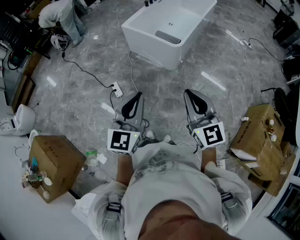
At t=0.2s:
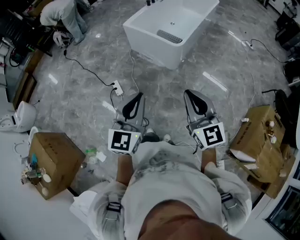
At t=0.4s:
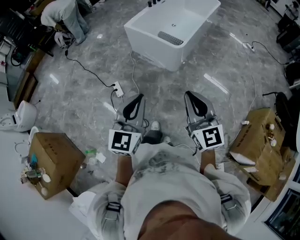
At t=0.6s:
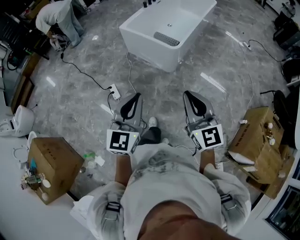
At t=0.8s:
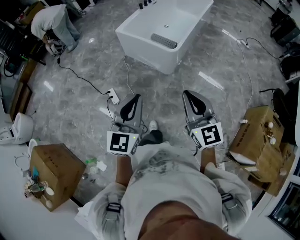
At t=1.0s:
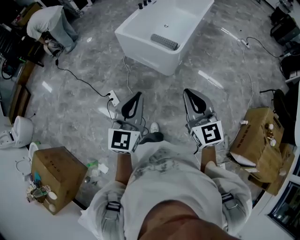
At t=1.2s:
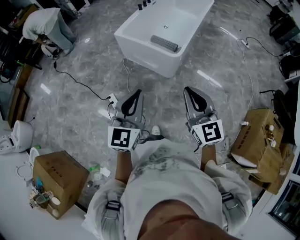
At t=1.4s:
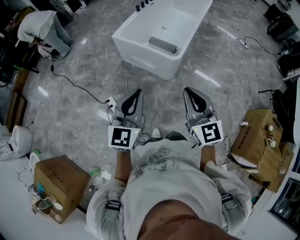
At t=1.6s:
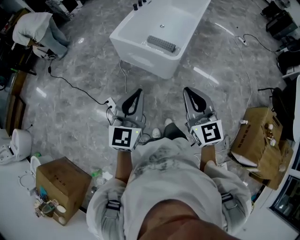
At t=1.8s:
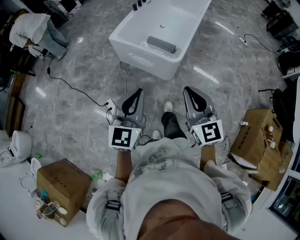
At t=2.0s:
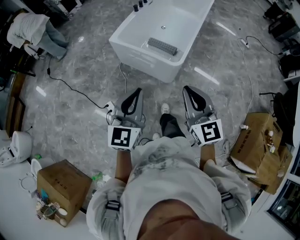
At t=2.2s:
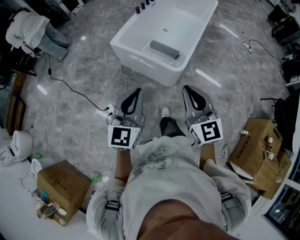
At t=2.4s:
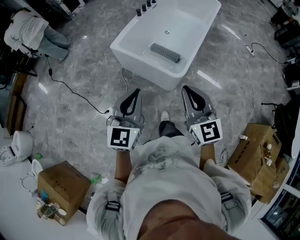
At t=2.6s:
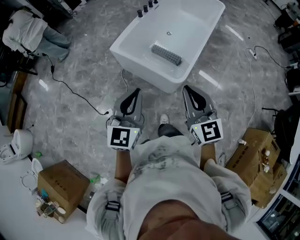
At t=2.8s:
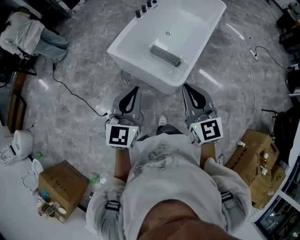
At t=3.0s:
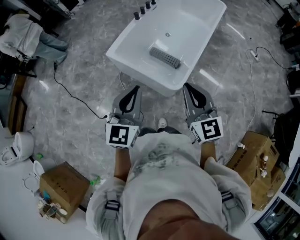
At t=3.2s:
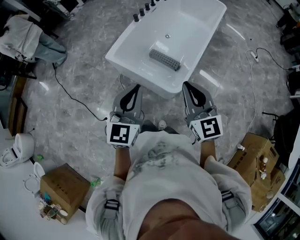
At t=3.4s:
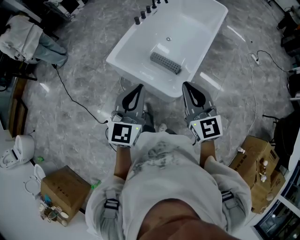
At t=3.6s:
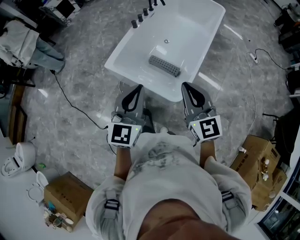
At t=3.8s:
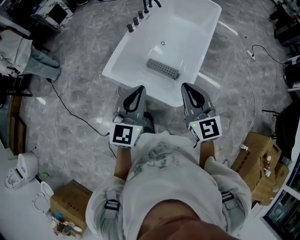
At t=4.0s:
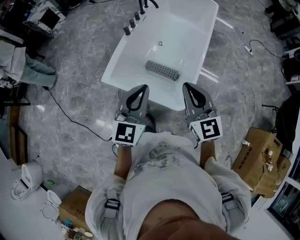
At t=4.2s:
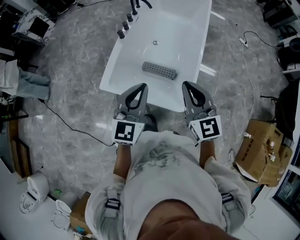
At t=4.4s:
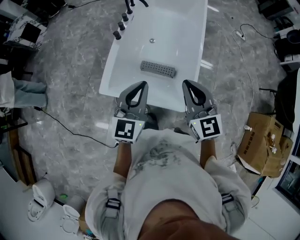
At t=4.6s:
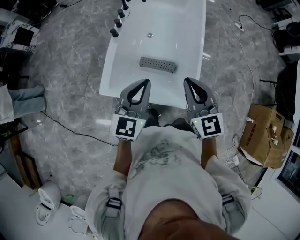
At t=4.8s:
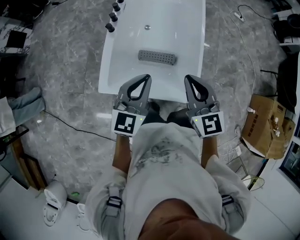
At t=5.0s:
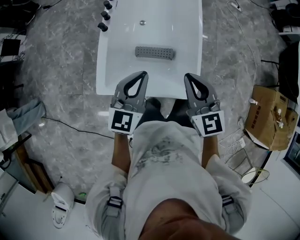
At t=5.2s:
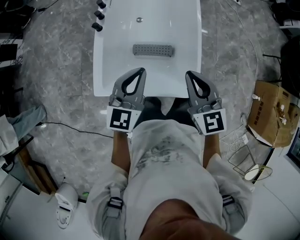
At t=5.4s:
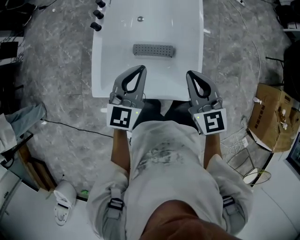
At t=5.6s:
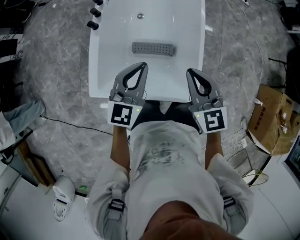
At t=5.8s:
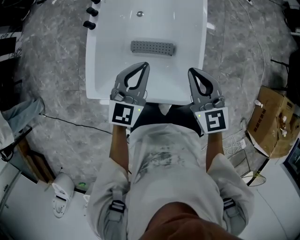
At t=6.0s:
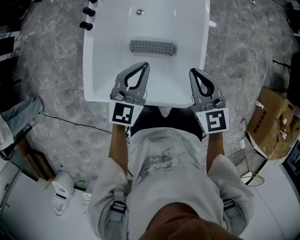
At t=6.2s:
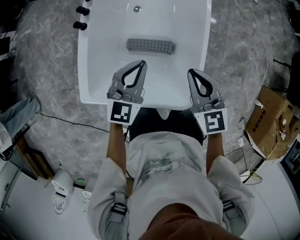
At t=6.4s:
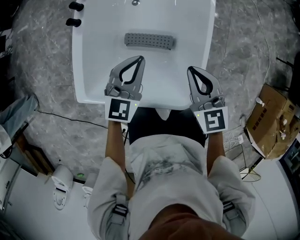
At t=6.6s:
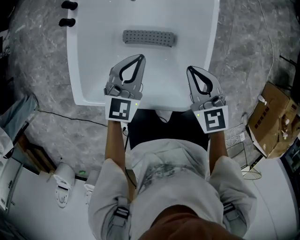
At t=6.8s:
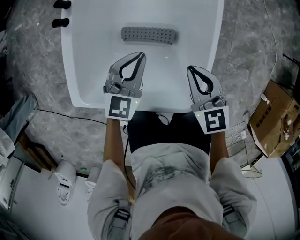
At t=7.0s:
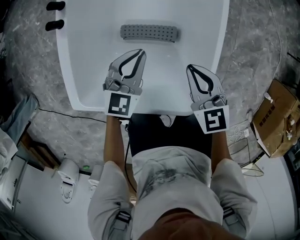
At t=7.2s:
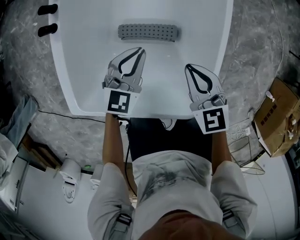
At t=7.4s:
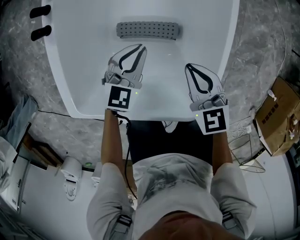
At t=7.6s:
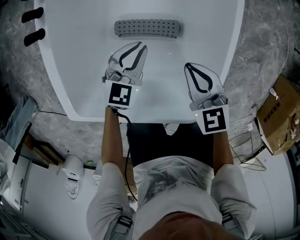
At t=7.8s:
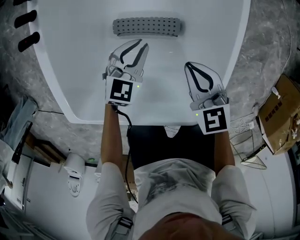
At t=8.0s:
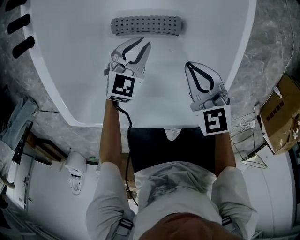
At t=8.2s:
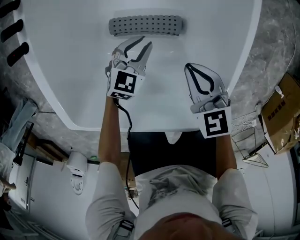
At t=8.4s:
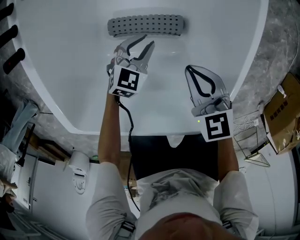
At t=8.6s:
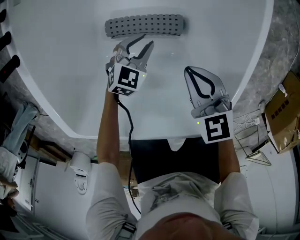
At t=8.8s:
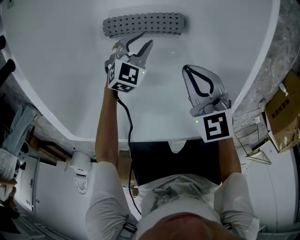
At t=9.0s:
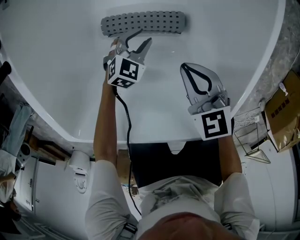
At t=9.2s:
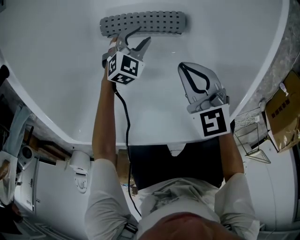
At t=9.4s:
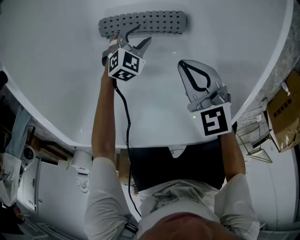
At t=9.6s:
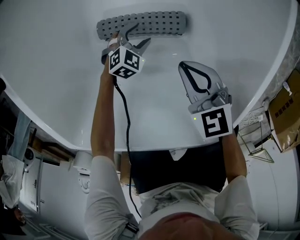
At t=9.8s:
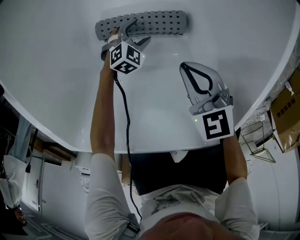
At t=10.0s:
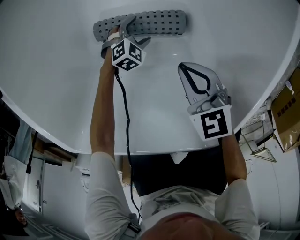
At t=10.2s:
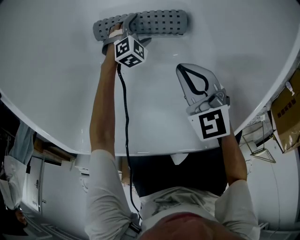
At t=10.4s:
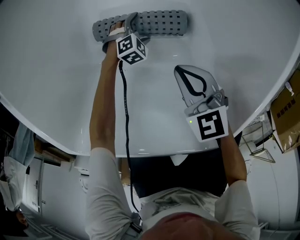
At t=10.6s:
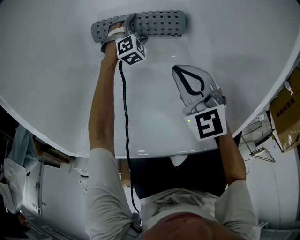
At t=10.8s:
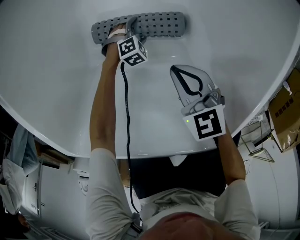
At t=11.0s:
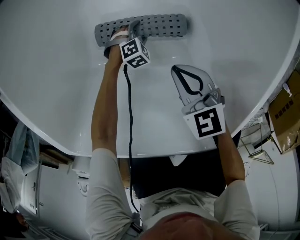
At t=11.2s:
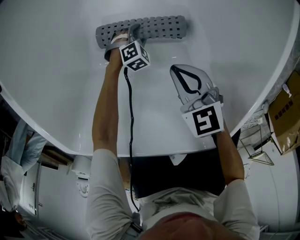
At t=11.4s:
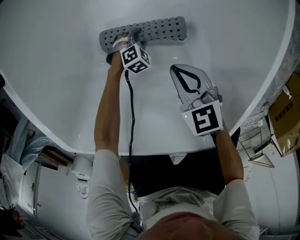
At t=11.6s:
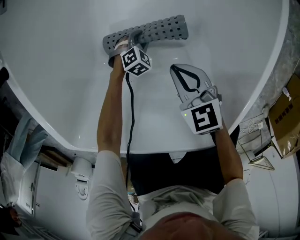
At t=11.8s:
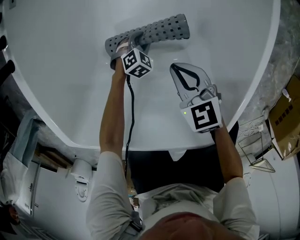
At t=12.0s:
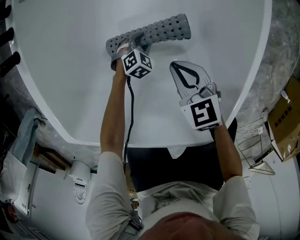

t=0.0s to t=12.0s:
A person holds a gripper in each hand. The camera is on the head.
t=0.0s to t=1.6s: The two grippers go about 25 cm forward.
t=1.6s to t=3.0s: Both grippers move forward, some 35 cm.
t=3.0s to t=4.4s: The grippers both shift forward by roughly 30 cm. The left gripper turns by about 20 degrees.
t=4.4s to t=6.0s: Both grippers travel together downward and forward, some 25 cm.
t=6.0s to t=7.6s: Both grippers move downward, some 35 cm. The right gripper changes its angle by roughly 20 degrees.
t=7.6s to t=9.0s: The right gripper is displaced downward by some 10 cm; the left gripper travels downward by approximately 25 cm, and rotates some 20 degrees.
t=9.0s to t=10.4s: The left gripper moves downward, roughly 20 cm, rotates about 30 degrees, and opens its fingers, while the right gripper heads downward, covering about 10 cm.
t=10.4s to t=12.0s: The right gripper heads upward, covering about 5 cm. The left gripper moves upward, some 10 cm, and closes its fingers.

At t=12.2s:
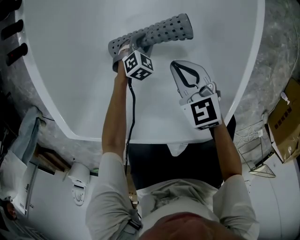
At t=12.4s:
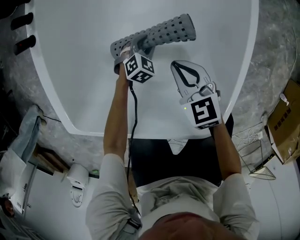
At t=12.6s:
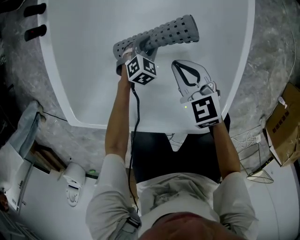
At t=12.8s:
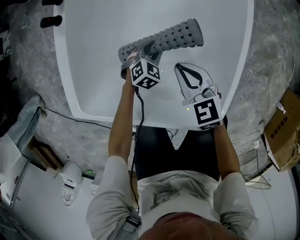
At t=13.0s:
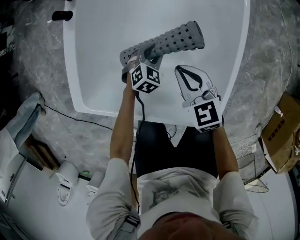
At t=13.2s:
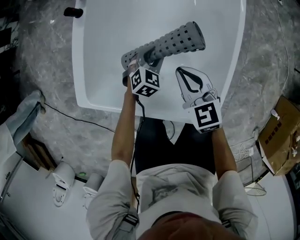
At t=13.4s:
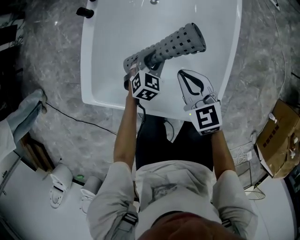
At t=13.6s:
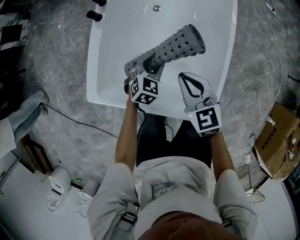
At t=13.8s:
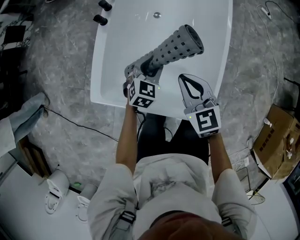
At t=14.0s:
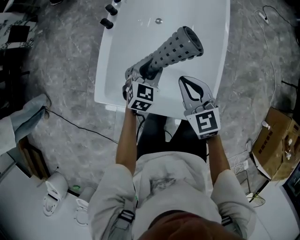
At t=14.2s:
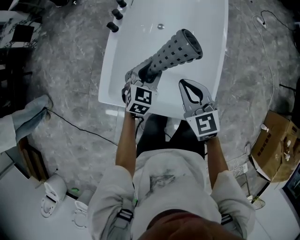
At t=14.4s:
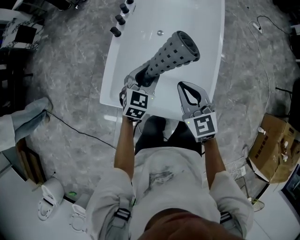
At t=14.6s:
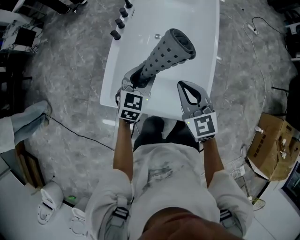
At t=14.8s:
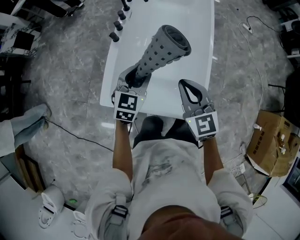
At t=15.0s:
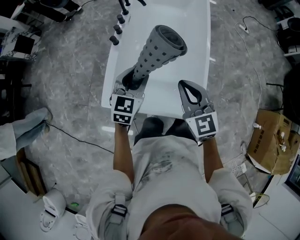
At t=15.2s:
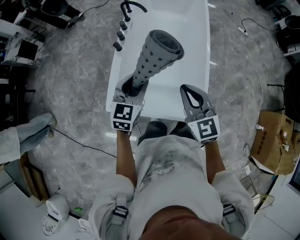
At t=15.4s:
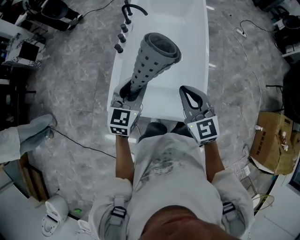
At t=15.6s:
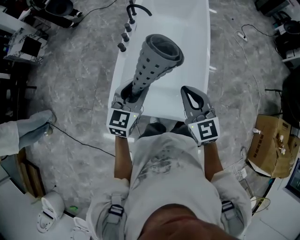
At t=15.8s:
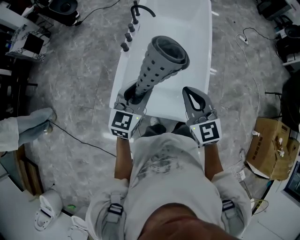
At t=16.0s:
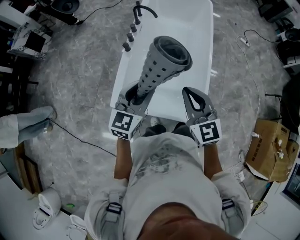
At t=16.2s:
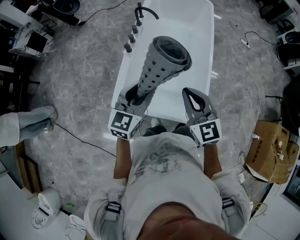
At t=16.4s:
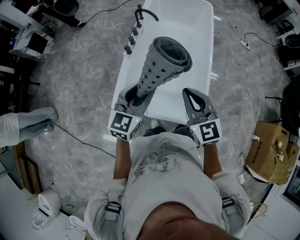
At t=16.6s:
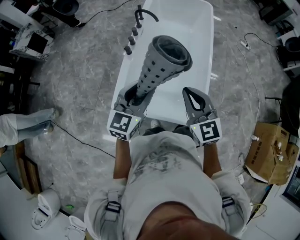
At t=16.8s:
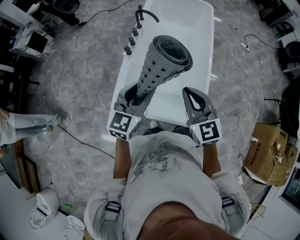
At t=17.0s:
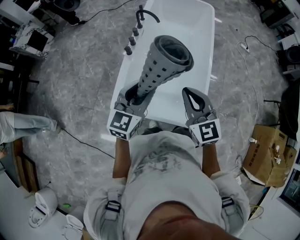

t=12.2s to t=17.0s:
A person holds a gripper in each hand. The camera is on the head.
t=12.2s to t=13.8s: Both grippers move upward, some 35 cm. The left gripper swivels some 30 degrees.
t=13.8s to t=15.4s: The grippers both shift upward by approximately 30 cm. The left gripper turns by roughly 20 degrees.
t=15.4s to t=17.0s: The two grippers go approximately 5 cm upward.

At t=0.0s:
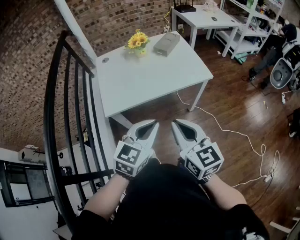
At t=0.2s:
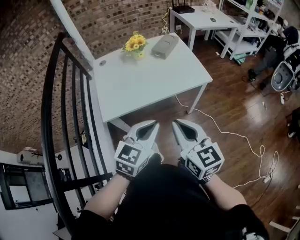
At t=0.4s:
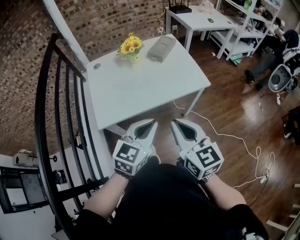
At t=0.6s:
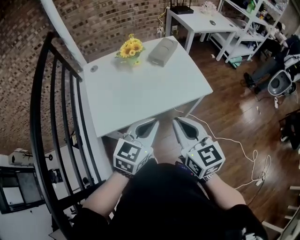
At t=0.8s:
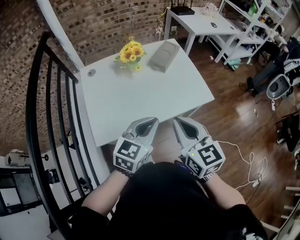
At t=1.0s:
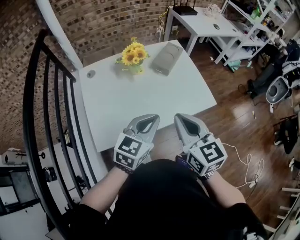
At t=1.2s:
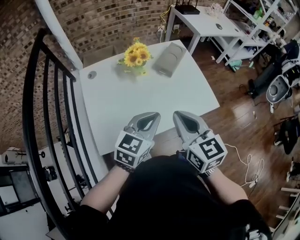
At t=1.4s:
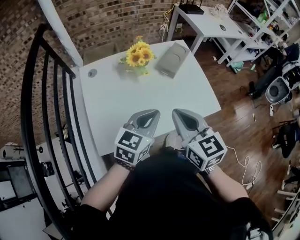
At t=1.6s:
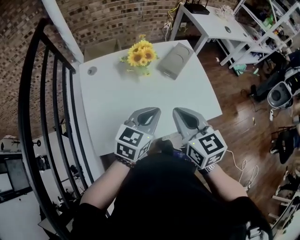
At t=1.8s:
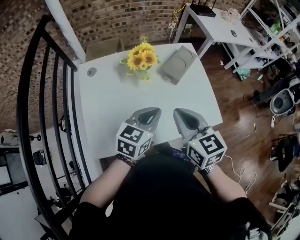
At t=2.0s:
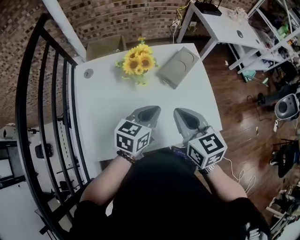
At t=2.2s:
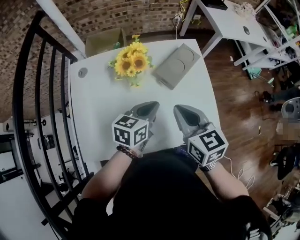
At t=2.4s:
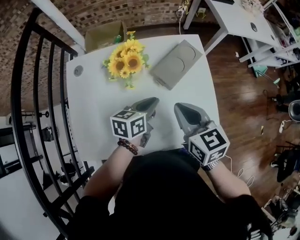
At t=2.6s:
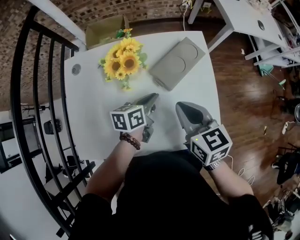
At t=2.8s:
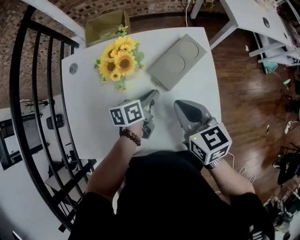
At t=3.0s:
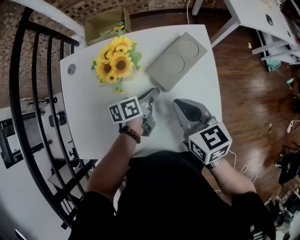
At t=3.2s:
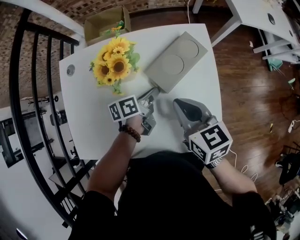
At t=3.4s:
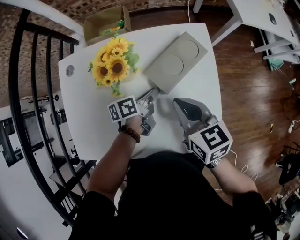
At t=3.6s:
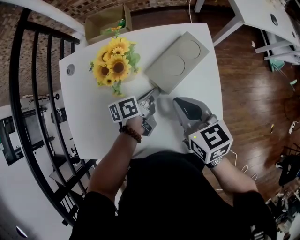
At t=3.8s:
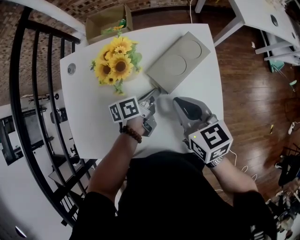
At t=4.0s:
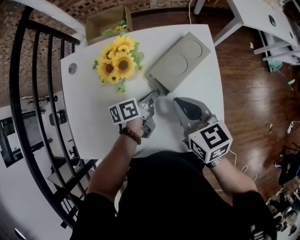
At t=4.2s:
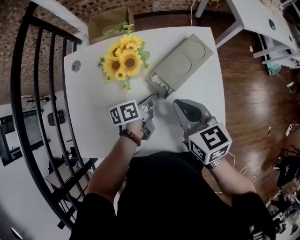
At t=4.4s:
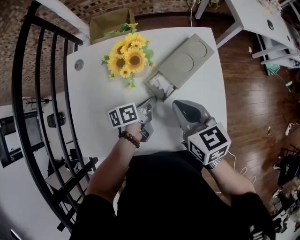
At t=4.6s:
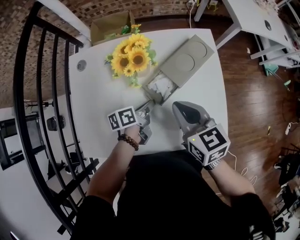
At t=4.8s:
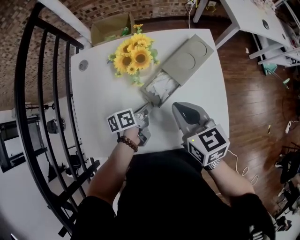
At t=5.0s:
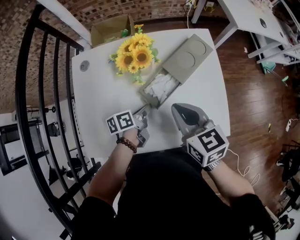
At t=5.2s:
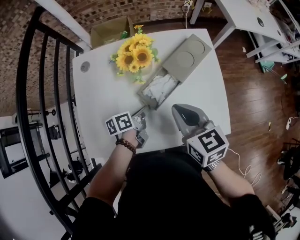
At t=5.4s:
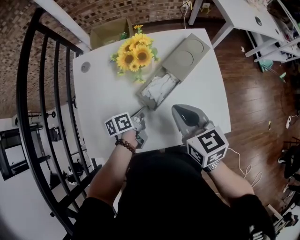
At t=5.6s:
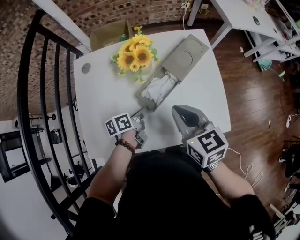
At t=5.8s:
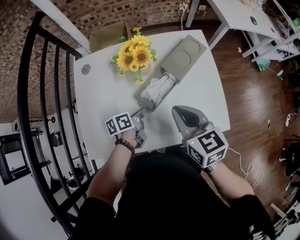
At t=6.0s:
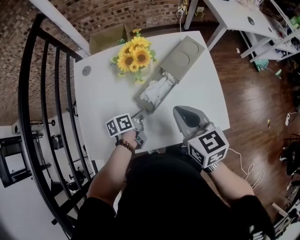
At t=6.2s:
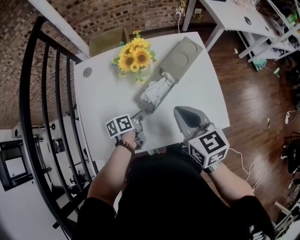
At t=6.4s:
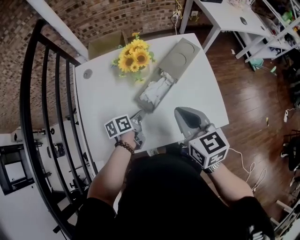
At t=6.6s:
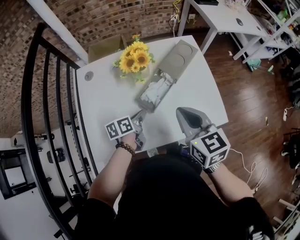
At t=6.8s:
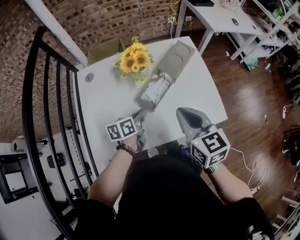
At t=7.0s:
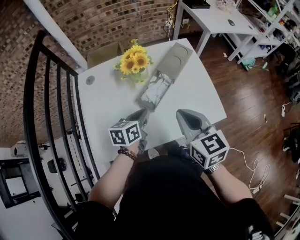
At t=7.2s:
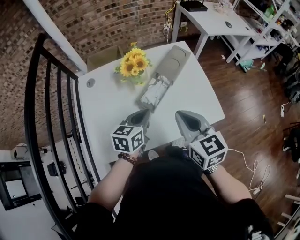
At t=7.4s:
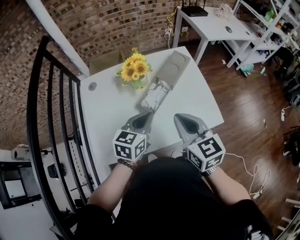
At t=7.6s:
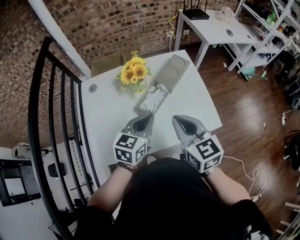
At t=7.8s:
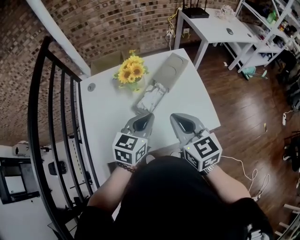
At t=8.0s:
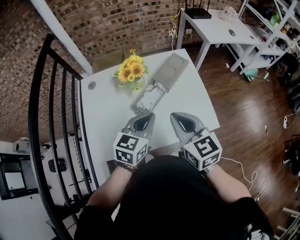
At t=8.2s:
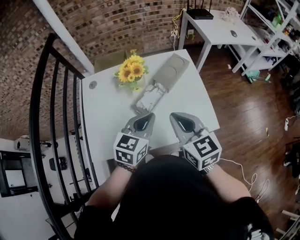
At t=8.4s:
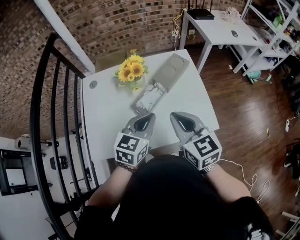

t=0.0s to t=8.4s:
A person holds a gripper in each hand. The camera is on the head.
t=0.0s to t=1.4s: Both grippers travel together forward, approximately 30 cm.
t=1.4s to t=2.8s: The right gripper heads forward, downward and to the right, covering approximately 30 cm, and swivels roughly 20 degrees. The left gripper shifts approximately 30 cm forward and downward, and rotates around the line of its fingers by roughly 50 degrees, counterclockwise from behind.
t=2.8s to t=4.2s: There are only small adjustments of the grippers.
t=4.2s to t=5.6s: The left gripper shifts about 15 cm backward and to the left; the right gripper heads backward, covering roughly 10 cm.
t=5.6s to t=7.0s: The left gripper goes some 10 cm upward, and rotates approximately 40 degrees. The right gripper moves backward, roughly 10 cm.
t=7.0s to t=8.4s: The left gripper moves upward and to the right, about 15 cm, and turns by roughly 30 degrees; the right gripper ends up some 5 cm from where it was.
